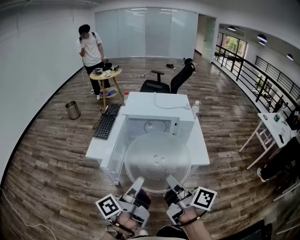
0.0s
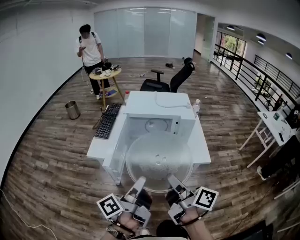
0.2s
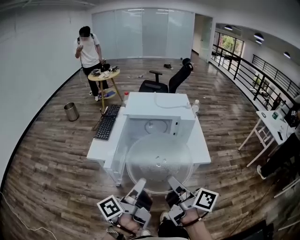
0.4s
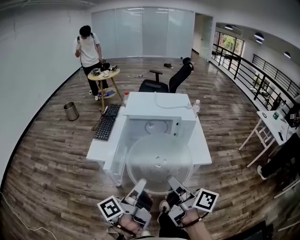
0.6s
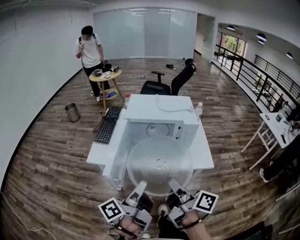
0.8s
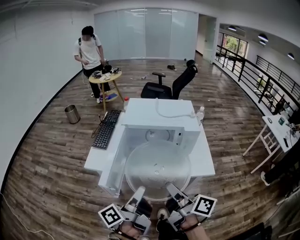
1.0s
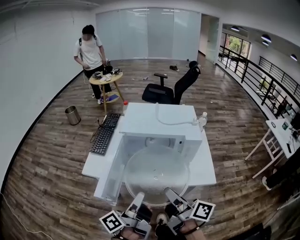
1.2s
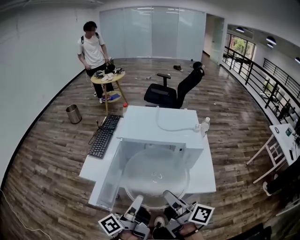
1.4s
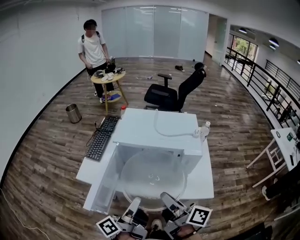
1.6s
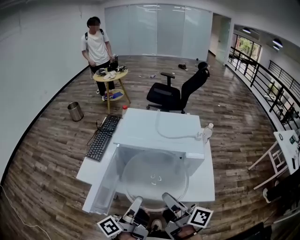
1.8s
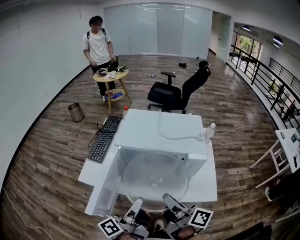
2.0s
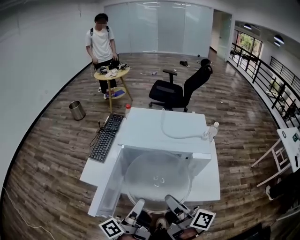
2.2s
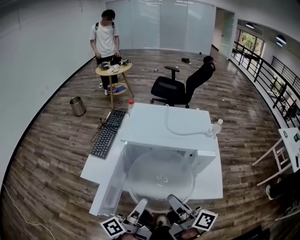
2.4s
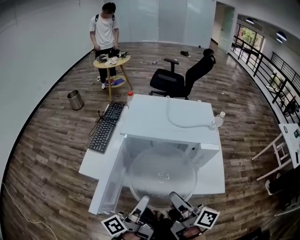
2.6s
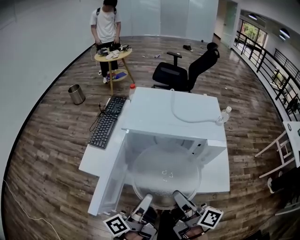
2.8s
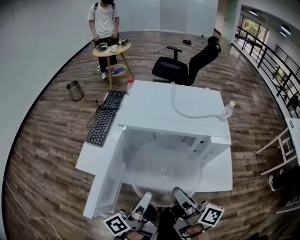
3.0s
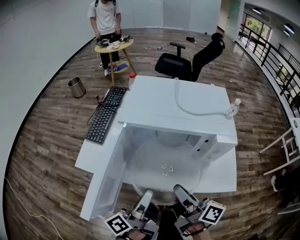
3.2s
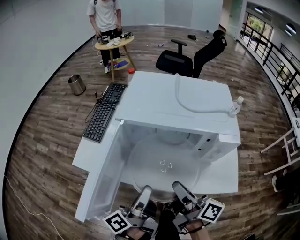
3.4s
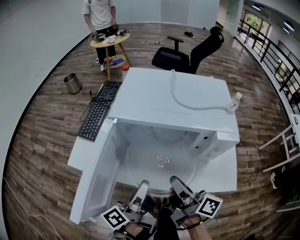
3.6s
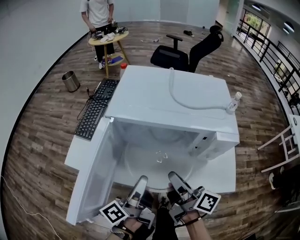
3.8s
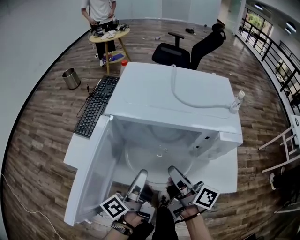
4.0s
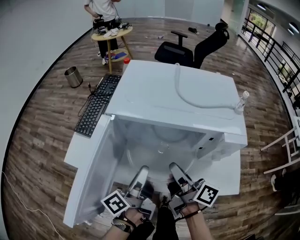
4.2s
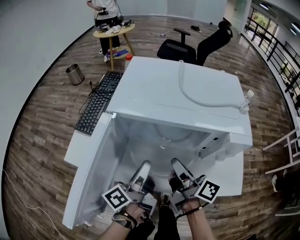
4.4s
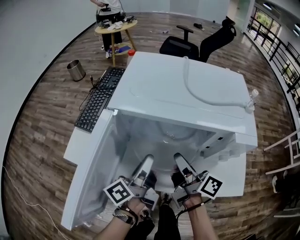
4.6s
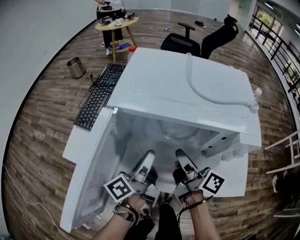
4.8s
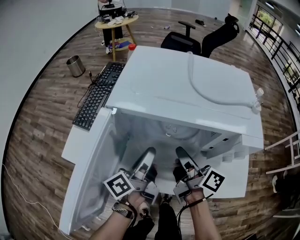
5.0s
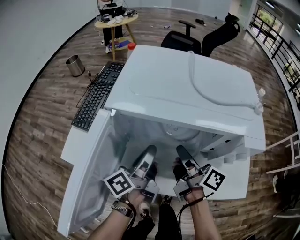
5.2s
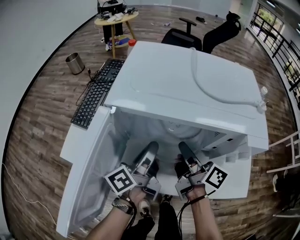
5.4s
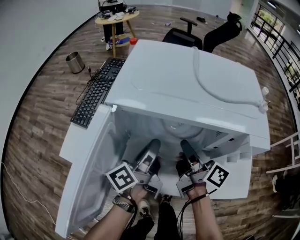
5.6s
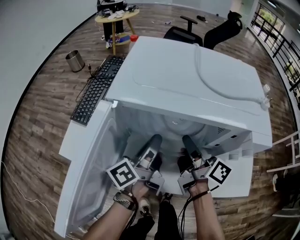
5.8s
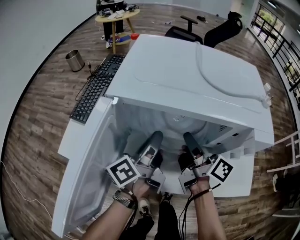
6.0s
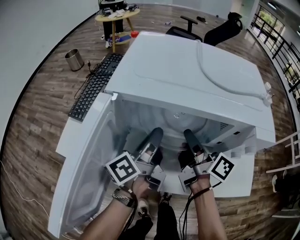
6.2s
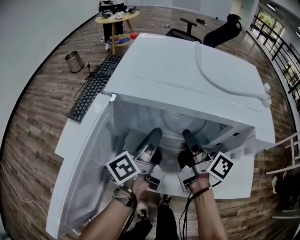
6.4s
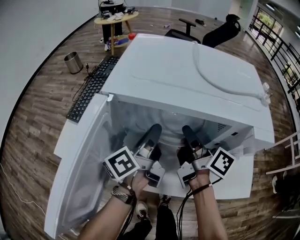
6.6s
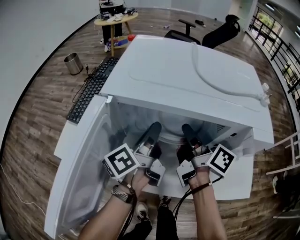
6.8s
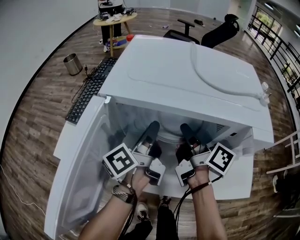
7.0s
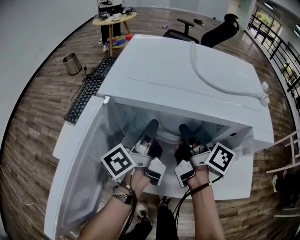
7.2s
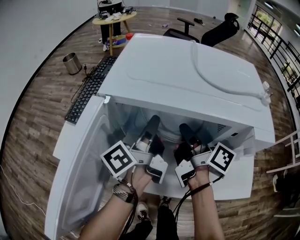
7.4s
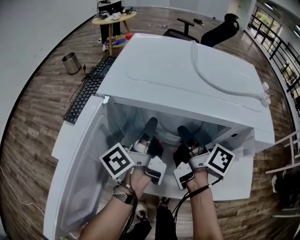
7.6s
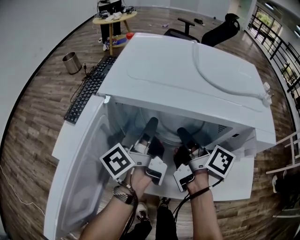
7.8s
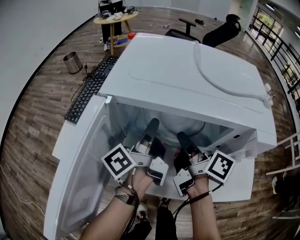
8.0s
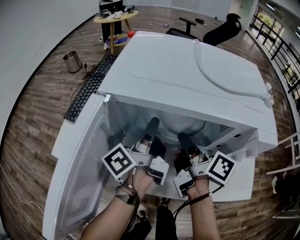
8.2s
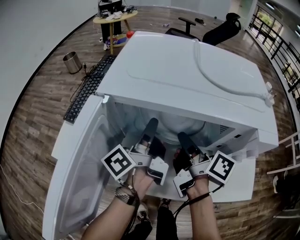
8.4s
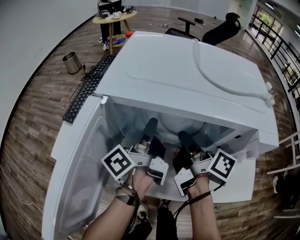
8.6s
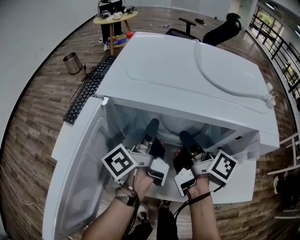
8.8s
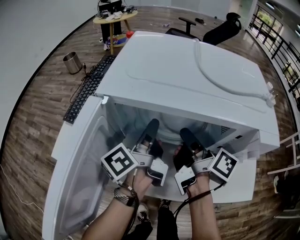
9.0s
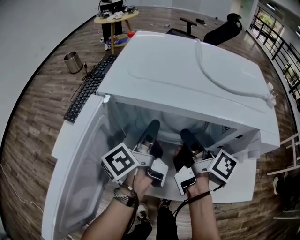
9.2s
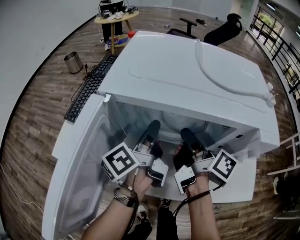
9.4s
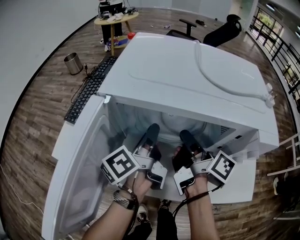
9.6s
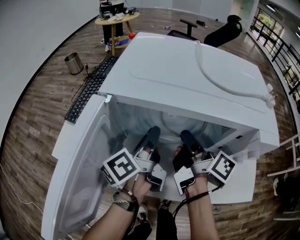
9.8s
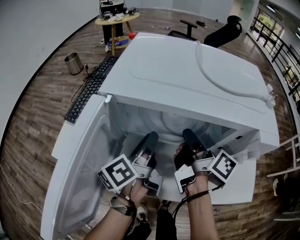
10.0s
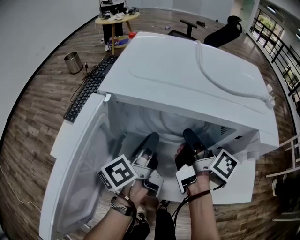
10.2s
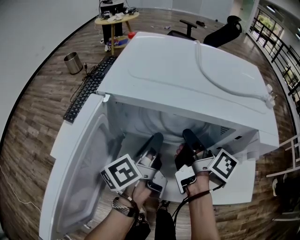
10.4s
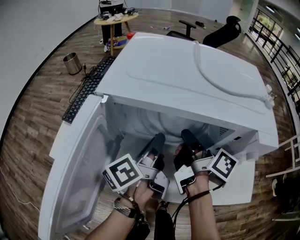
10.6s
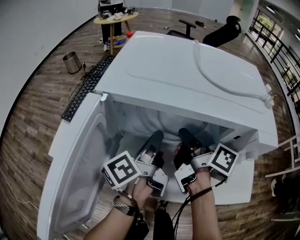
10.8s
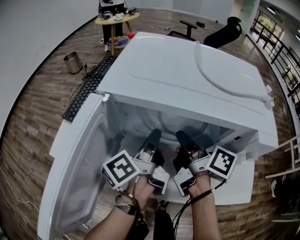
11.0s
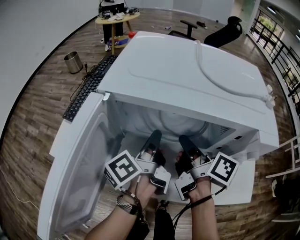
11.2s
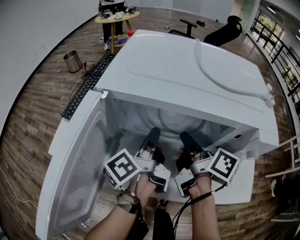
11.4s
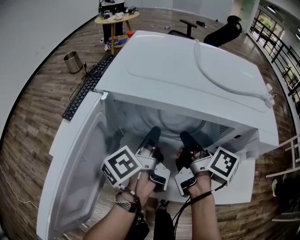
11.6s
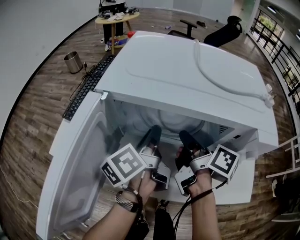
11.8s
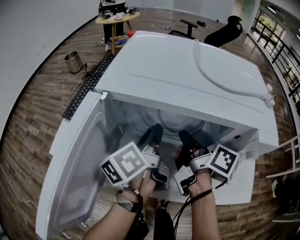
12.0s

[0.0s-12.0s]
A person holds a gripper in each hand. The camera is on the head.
0.0s to 1.6s: The grippers both shift forward by some 10 cm.
1.6s to 3.0s: Both grippers travel together downward, roughly 5 cm.
3.0s to 4.4s: Both grippers travel together forward and downward, approximately 15 cm.
4.4s to 6.0s: Both grippers travel together forward, roughly 5 cm.
6.0s to 7.6s: The left gripper moves about 5 cm.
7.6s to 10.4s: The grippers make only small movements.
10.4s to 12.0s: The grippers stay close to where they were, moving slightly.

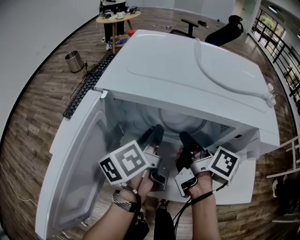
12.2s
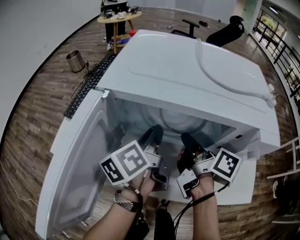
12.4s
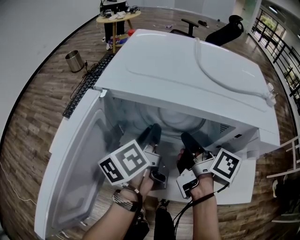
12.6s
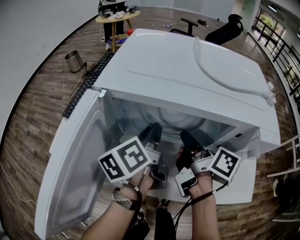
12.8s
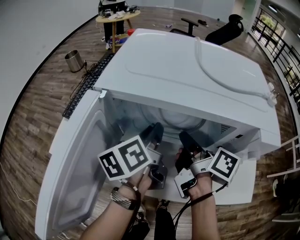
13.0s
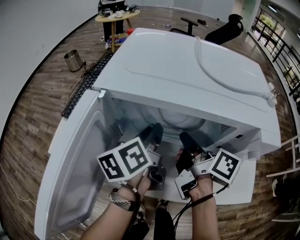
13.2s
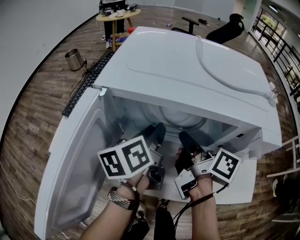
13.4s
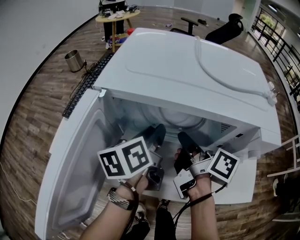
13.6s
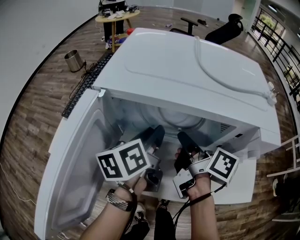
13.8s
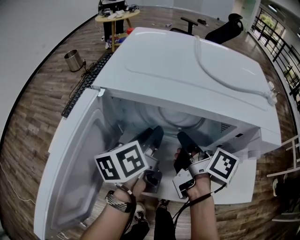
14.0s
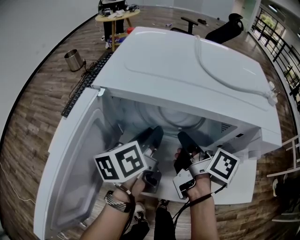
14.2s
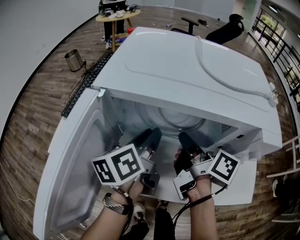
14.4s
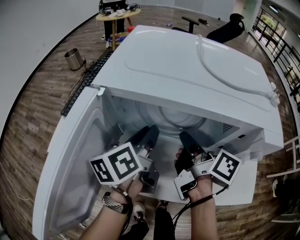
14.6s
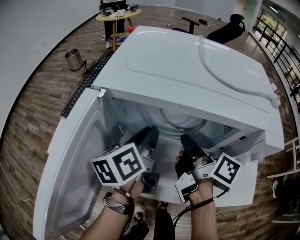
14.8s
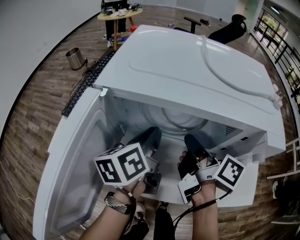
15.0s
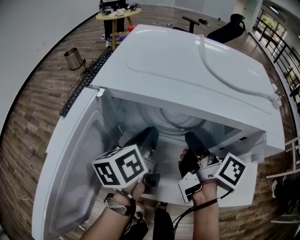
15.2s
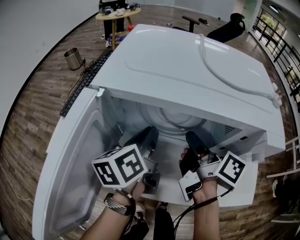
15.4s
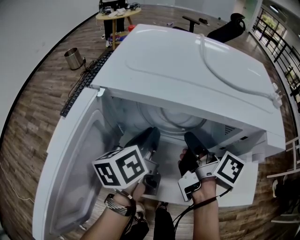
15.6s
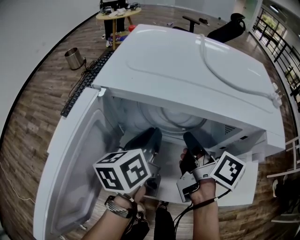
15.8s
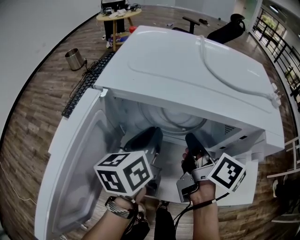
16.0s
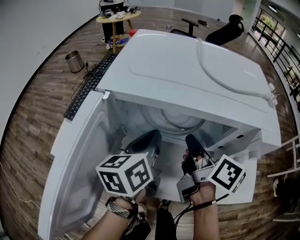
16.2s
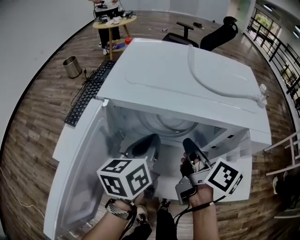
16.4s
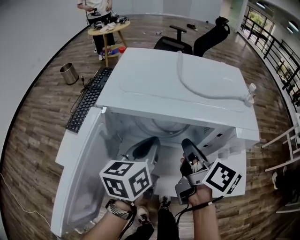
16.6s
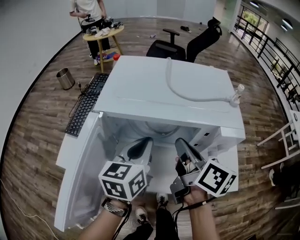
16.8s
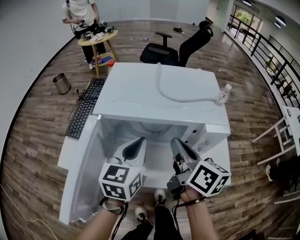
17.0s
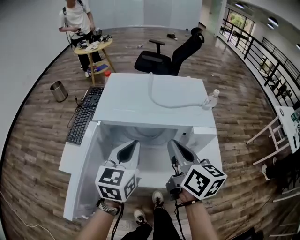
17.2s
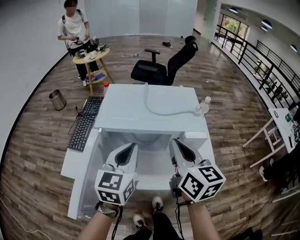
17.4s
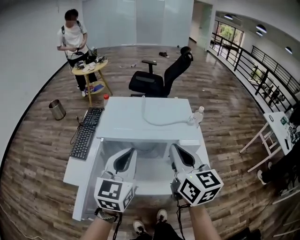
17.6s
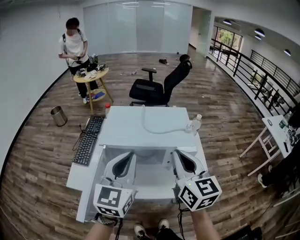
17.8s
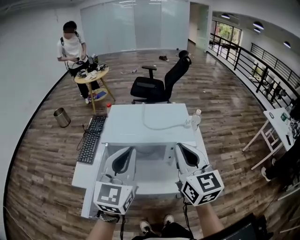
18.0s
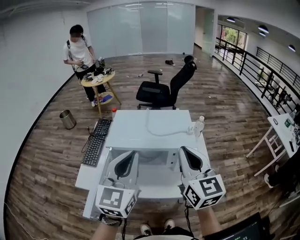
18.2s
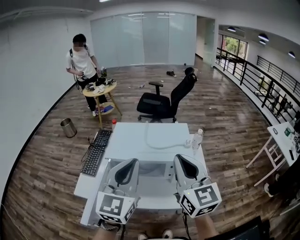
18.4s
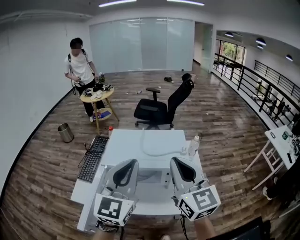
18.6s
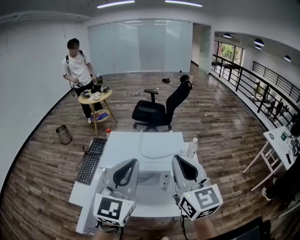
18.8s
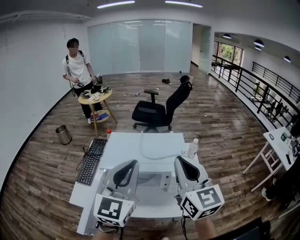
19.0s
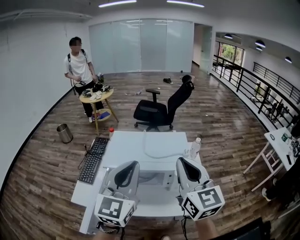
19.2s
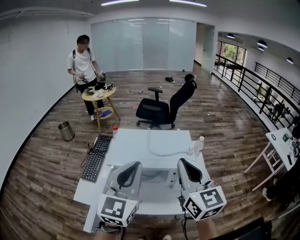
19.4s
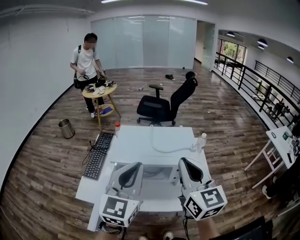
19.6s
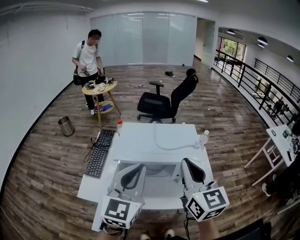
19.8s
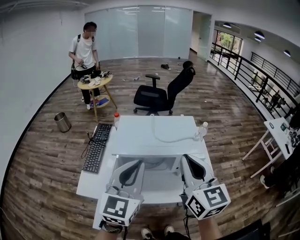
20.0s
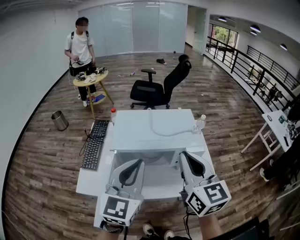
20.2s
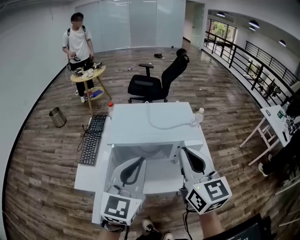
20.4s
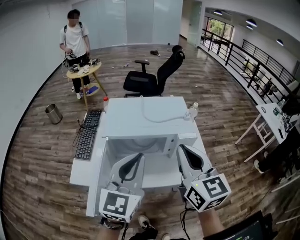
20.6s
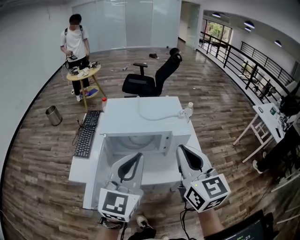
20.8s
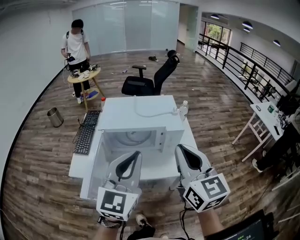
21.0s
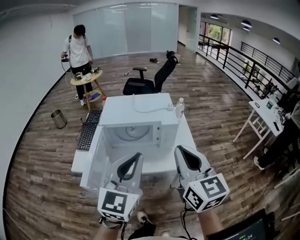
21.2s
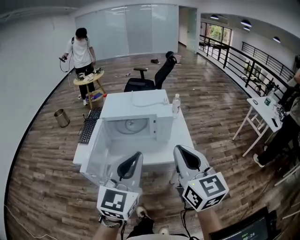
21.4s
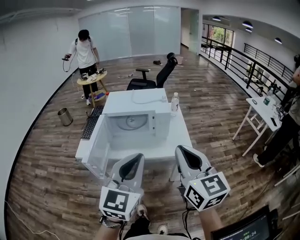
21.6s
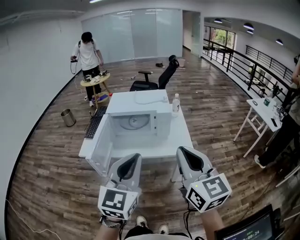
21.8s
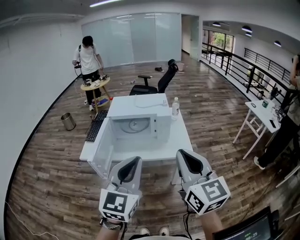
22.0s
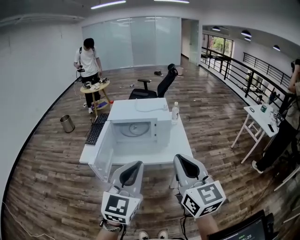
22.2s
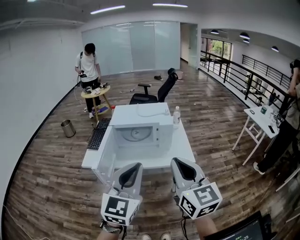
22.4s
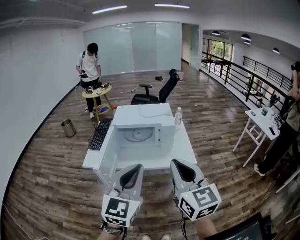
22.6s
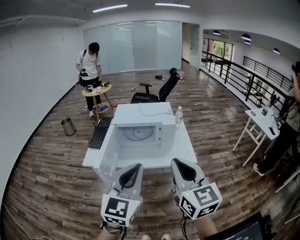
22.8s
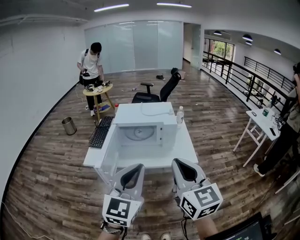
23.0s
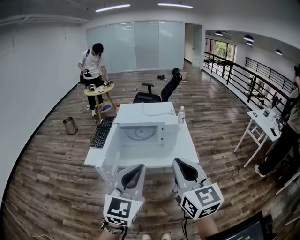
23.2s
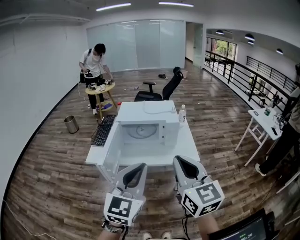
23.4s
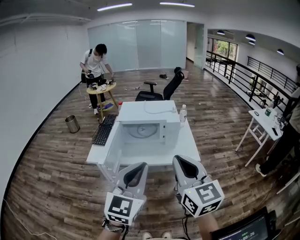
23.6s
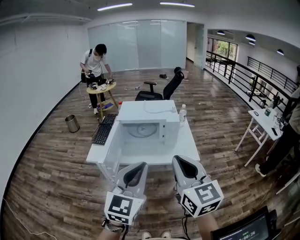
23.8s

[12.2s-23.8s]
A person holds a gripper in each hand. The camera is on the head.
12.2s to 15.0s: There are only small adjustments of the grippers.
15.0s to 16.6s: The grippers both shift upward by roughly 5 cm.
16.6s to 18.0s: The two grippers go about 20 cm upward. The right gripper twists some 50 degrees counterclockwise, seen from behind, while the left gripper rotates about 40 degrees.
18.0s to 19.4s: The right gripper ends up approximately 5 cm from where it was.
19.4s to 21.0s: Both grippers move backward, approximately 10 cm.
21.0s to 22.4s: Both grippers travel together backward, some 15 cm.
22.4s to 23.8s: The grippers move only a little.

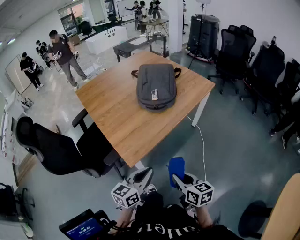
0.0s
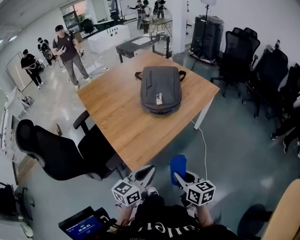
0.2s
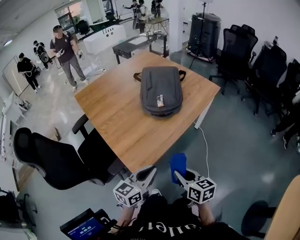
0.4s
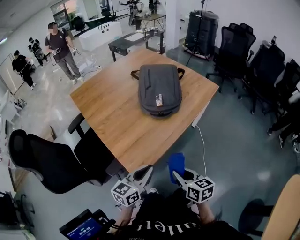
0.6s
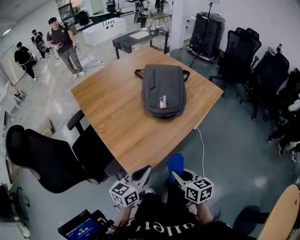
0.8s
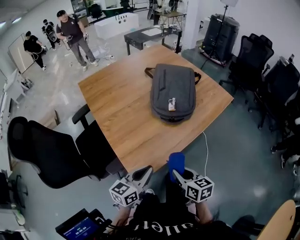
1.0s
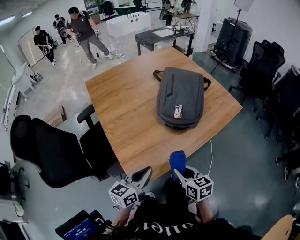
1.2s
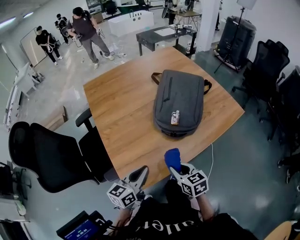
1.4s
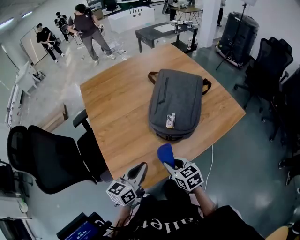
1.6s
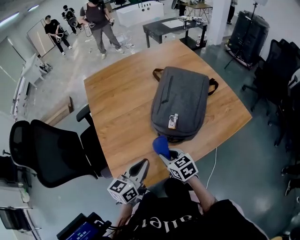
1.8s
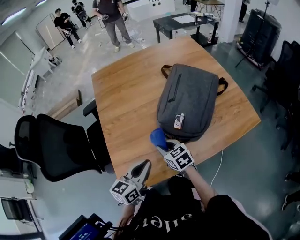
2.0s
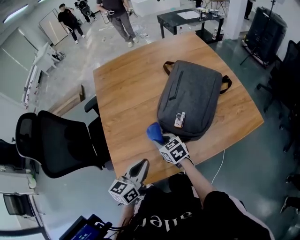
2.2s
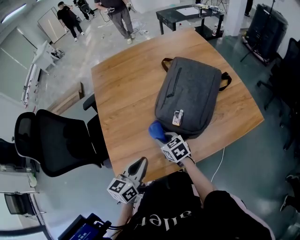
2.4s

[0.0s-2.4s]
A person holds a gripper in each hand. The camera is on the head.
0.0s to 1.2s: The left gripper moves forward and to the left, approximately 20 cm; the right gripper shifts about 20 cm forward.
1.2s to 2.4s: The left gripper moves about 15 cm, and turns by some 20 degrees. Meanwhile the right gripper ends up roughly 25 cm from where it was, and turns by about 30 degrees.
